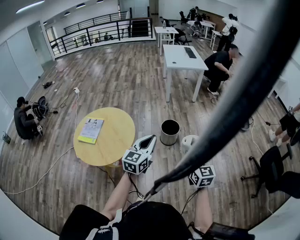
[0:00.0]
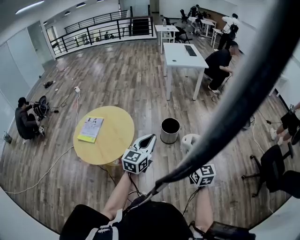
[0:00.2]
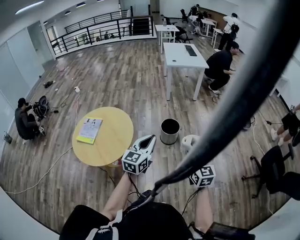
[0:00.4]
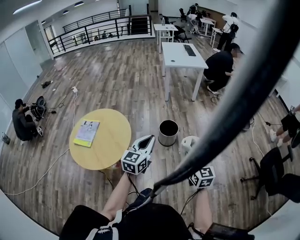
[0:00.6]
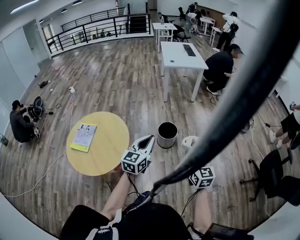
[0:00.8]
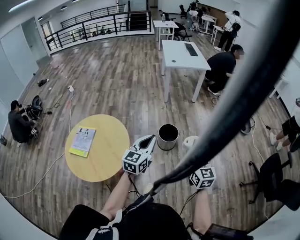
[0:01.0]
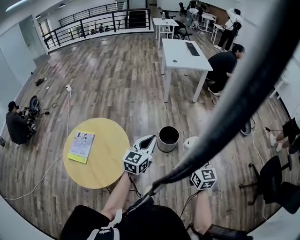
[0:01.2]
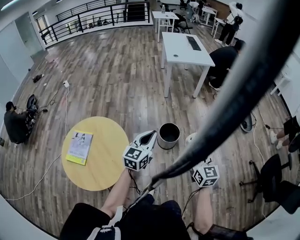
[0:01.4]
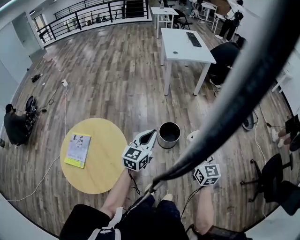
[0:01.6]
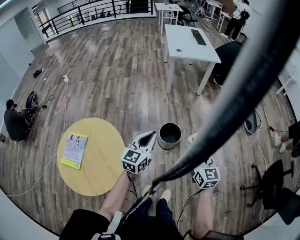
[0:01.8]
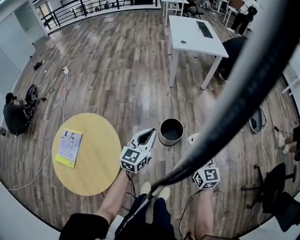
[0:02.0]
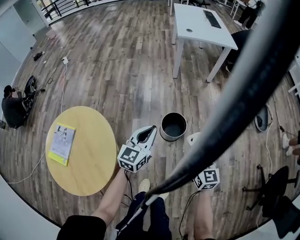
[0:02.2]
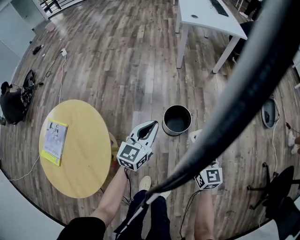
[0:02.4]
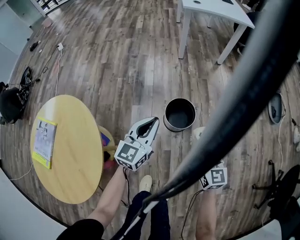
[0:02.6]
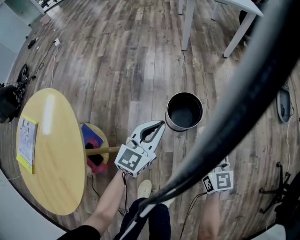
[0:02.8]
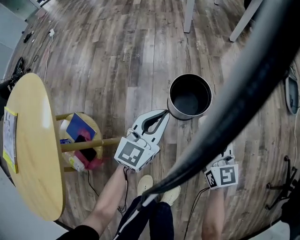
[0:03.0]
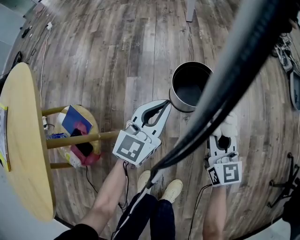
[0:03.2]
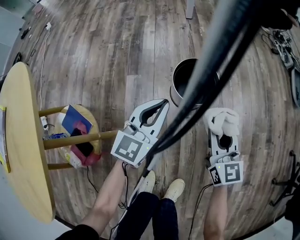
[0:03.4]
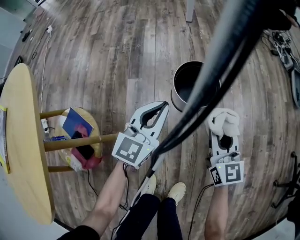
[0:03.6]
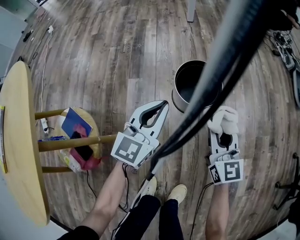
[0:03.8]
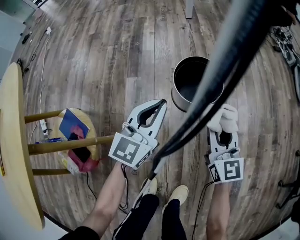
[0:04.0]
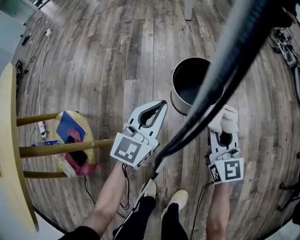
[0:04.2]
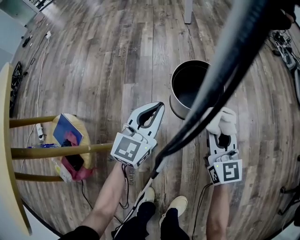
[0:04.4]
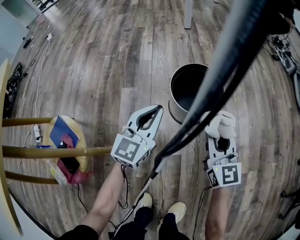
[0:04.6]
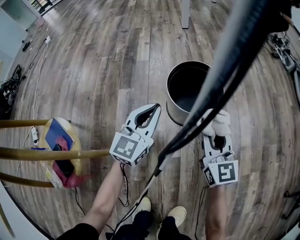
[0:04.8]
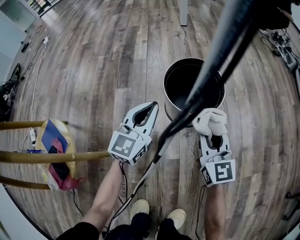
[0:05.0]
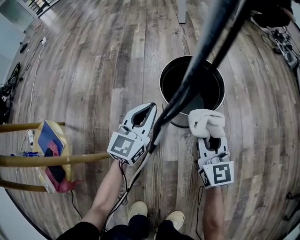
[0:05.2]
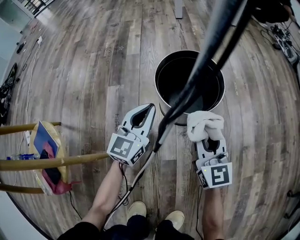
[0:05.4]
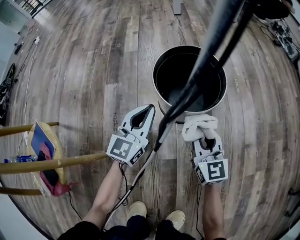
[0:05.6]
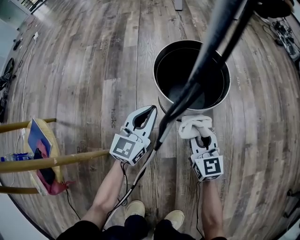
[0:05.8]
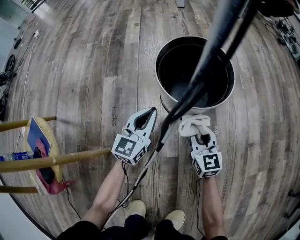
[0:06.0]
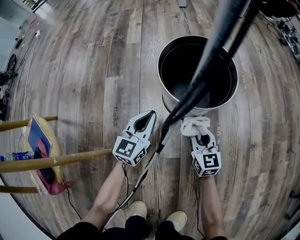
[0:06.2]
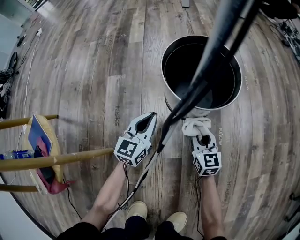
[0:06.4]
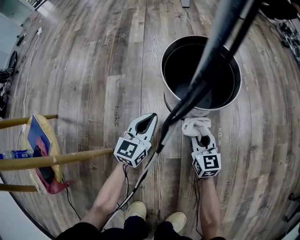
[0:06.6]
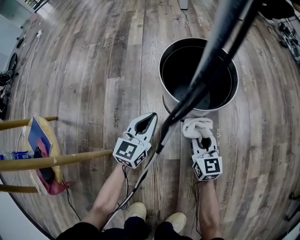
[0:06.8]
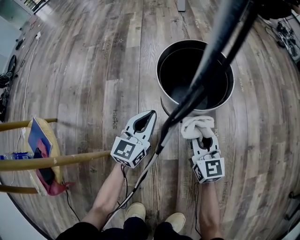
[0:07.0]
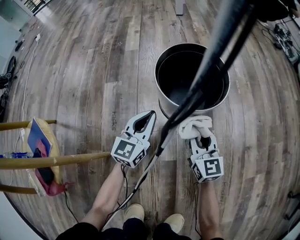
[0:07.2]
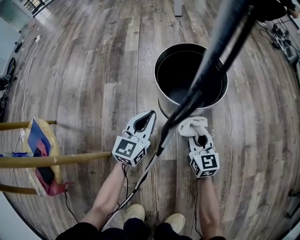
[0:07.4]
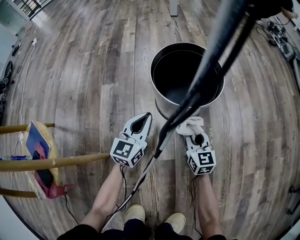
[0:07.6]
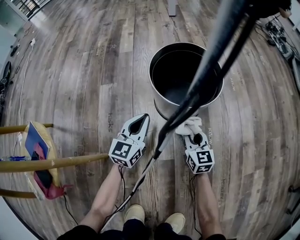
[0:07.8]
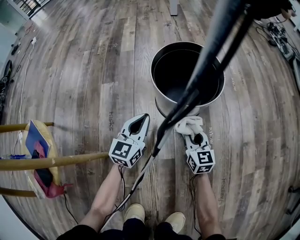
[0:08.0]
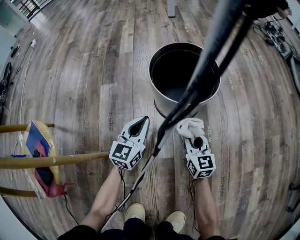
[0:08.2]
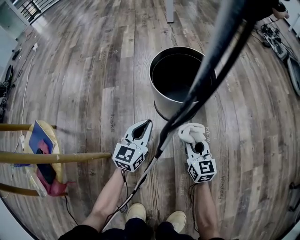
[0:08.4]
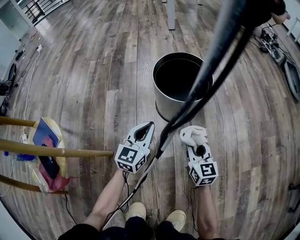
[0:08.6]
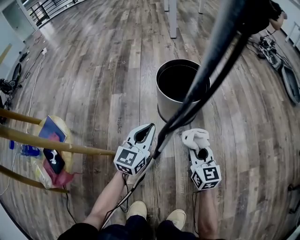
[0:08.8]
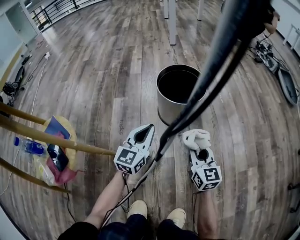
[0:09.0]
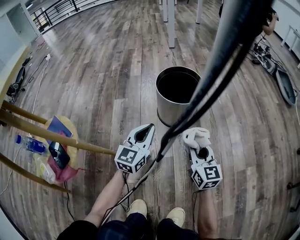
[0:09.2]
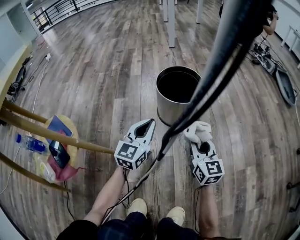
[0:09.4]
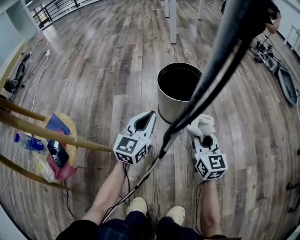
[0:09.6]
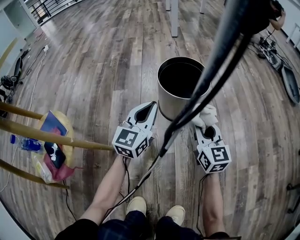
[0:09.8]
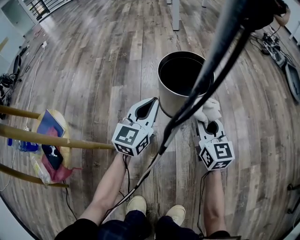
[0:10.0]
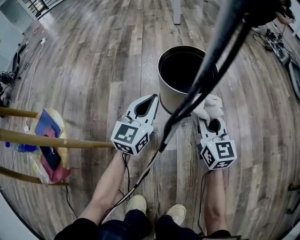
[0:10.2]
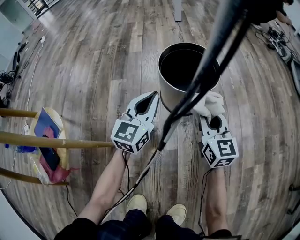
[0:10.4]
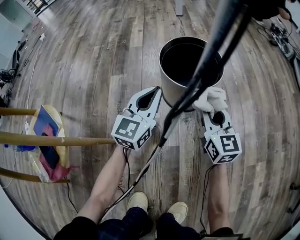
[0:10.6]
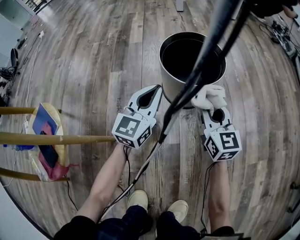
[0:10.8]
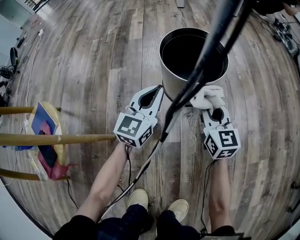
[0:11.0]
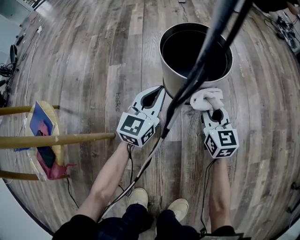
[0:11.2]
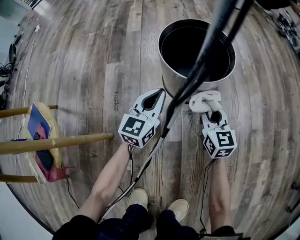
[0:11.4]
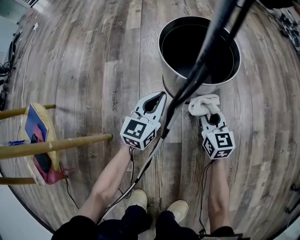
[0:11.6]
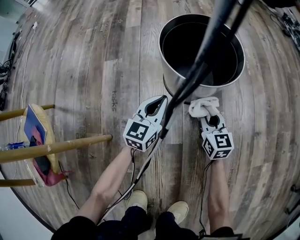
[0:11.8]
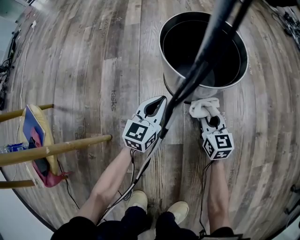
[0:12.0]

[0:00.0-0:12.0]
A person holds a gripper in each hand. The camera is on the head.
0:00.0 to 0:01.6: The grippers both shift forward by some 30 cm.
0:01.6 to 0:03.0: Both grippers travel together downward, some 50 cm.
0:03.0 to 0:04.4: The two grippers go roughly 15 cm downward.
0:04.4 to 0:06.0: The two grippers go roughly 25 cm downward.
0:06.0 to 0:07.6: The right gripper moves up and down over approximately 10 cm, changing direction 2 times.
0:07.6 to 0:09.0: The two grippers go roughly 15 cm upward and backward.
0:09.0 to 0:10.4: The two grippers go about 10 cm forward.
0:10.4 to 0:12.0: The grippers both shift downward by about 20 cm.

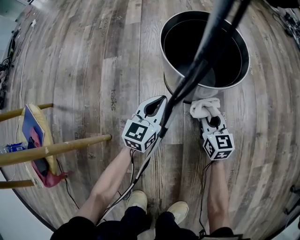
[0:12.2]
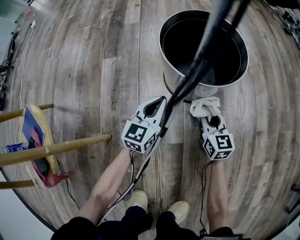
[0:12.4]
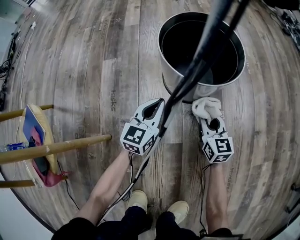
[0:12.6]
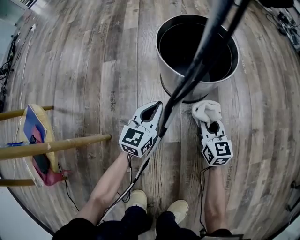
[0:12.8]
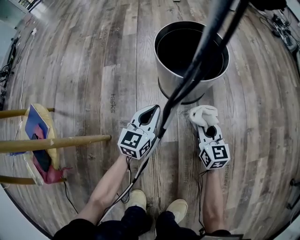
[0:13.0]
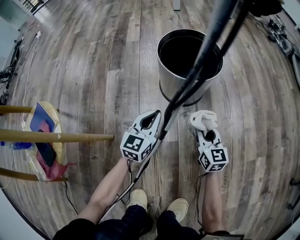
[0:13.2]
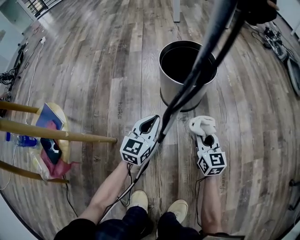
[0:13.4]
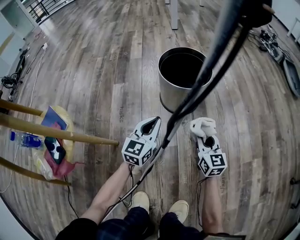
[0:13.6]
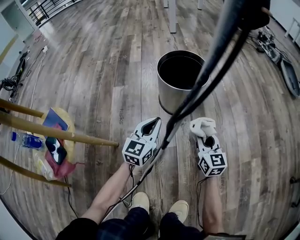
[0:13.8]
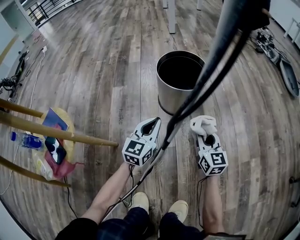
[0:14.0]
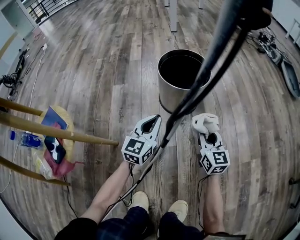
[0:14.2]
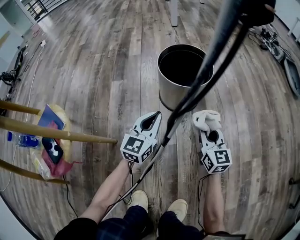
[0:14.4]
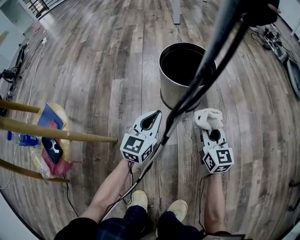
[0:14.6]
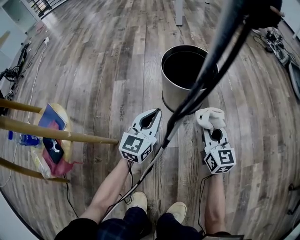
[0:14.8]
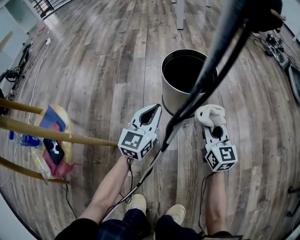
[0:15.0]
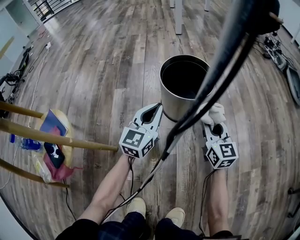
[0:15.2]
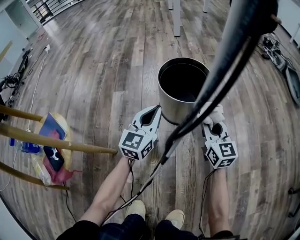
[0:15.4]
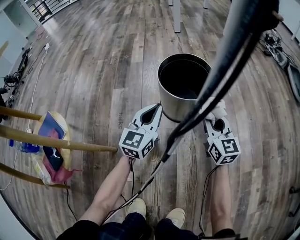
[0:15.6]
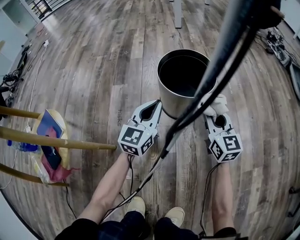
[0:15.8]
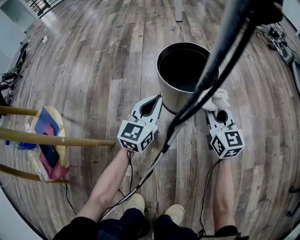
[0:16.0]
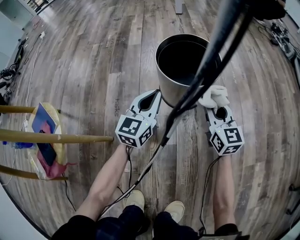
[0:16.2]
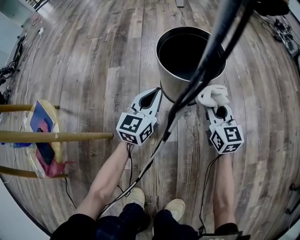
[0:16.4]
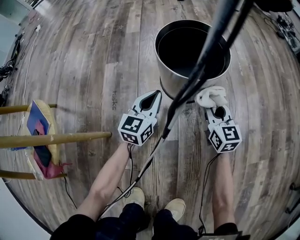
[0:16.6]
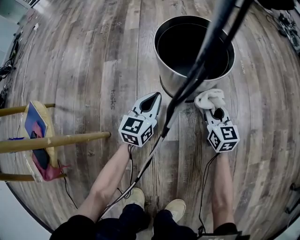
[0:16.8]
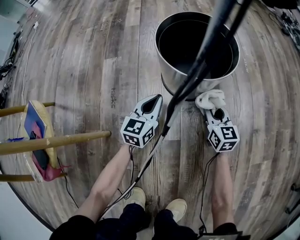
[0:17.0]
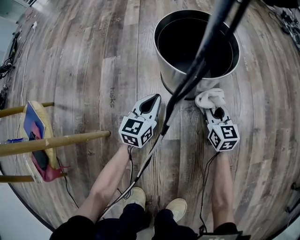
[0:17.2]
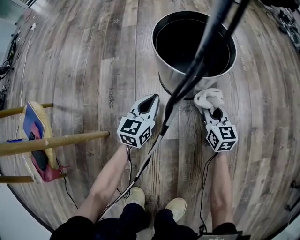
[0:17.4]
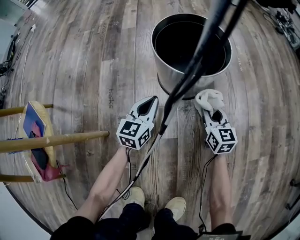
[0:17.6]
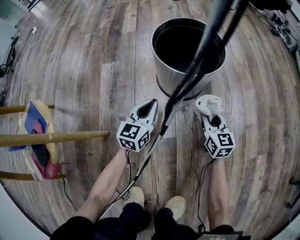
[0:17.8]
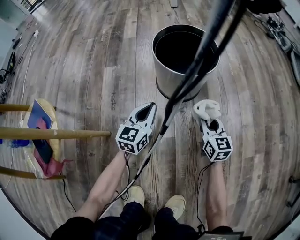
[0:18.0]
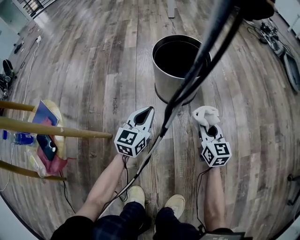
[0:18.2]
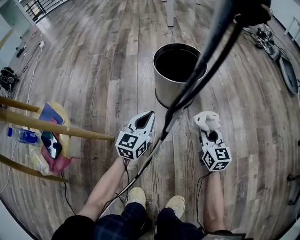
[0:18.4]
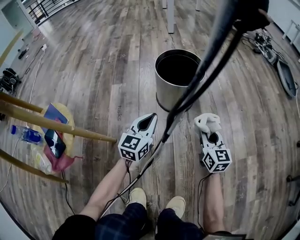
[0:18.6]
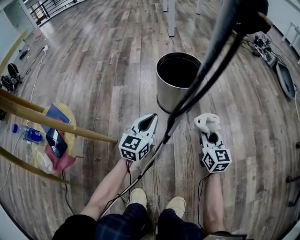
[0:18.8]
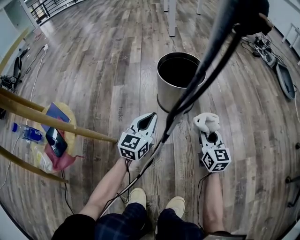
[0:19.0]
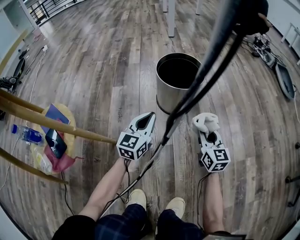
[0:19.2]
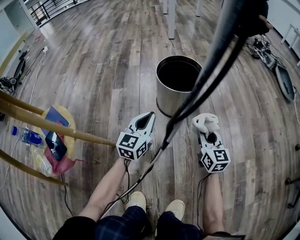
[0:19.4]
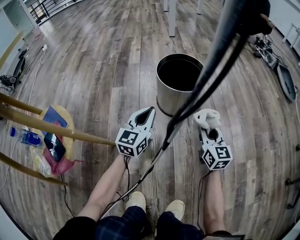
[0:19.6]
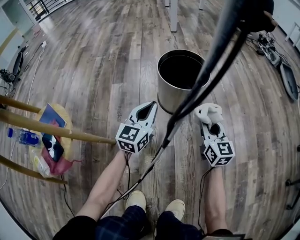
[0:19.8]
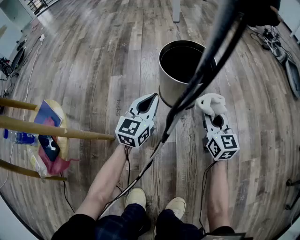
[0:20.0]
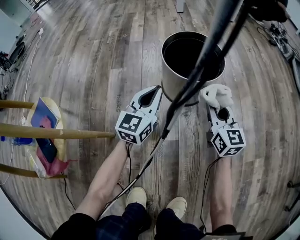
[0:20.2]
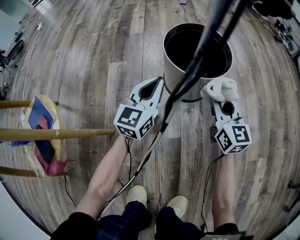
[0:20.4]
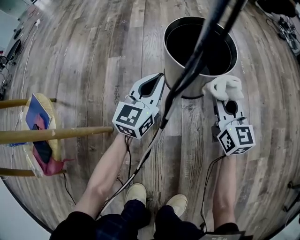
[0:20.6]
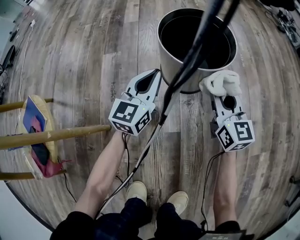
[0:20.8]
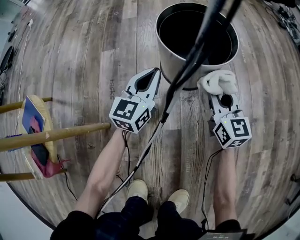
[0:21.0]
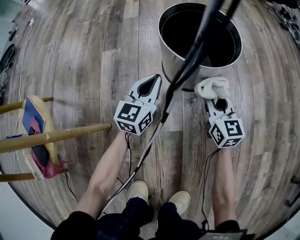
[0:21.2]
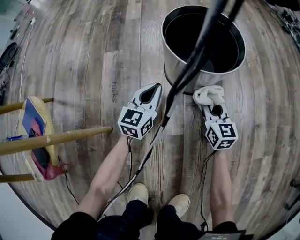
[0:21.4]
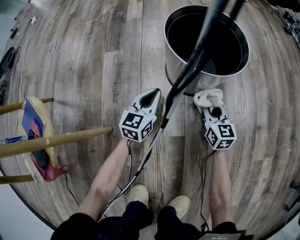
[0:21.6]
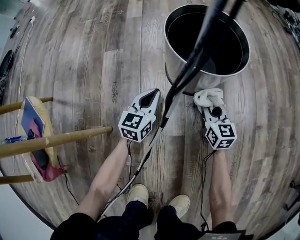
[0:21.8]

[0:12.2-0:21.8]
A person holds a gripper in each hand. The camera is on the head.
0:12.2 to 0:13.8: Both grippers travel together upward and backward, about 15 cm.
0:13.8 to 0:15.4: Both grippers move forward and upward, approximately 10 cm.
0:15.4 to 0:17.0: The grippers both shift downward by roughly 20 cm.
0:17.0 to 0:18.6: The grippers both shift upward and backward by about 20 cm.
0:18.6 to 0:20.2: The two grippers go some 10 cm forward.
0:20.2 to 0:21.8: The grippers both shift downward by about 15 cm.

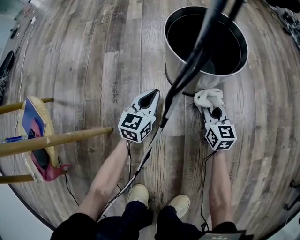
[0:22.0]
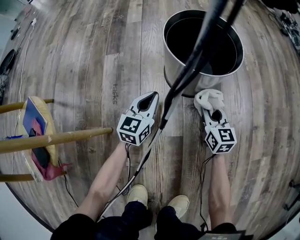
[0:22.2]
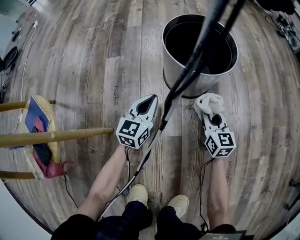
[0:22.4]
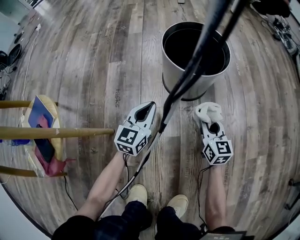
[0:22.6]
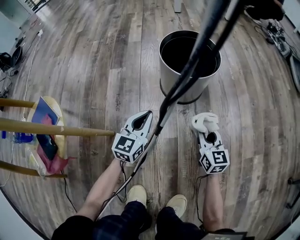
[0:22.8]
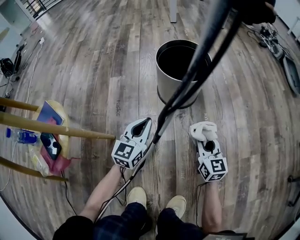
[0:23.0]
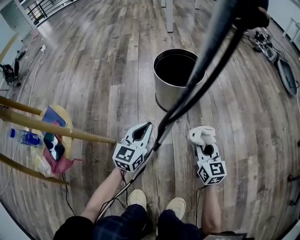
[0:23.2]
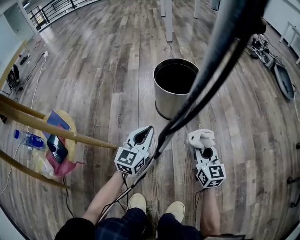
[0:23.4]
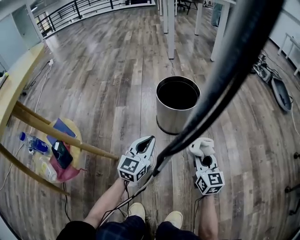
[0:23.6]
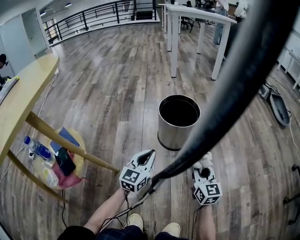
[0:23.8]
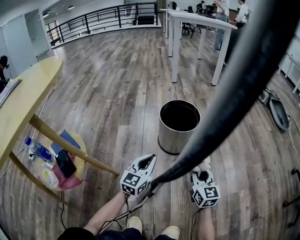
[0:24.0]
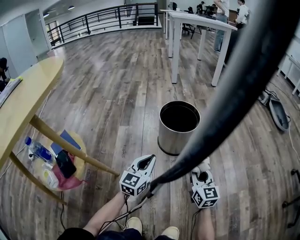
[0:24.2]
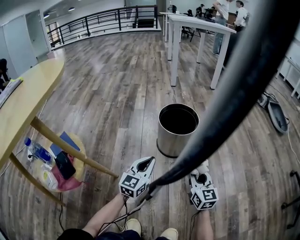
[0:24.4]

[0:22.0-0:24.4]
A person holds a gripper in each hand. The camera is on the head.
0:22.0 to 0:23.2: The left gripper shifts about 20 cm upward and backward, while the right gripper shifts some 20 cm backward and upward.
0:23.2 to 0:24.4: Both grippers travel together upward, about 5 cm.
